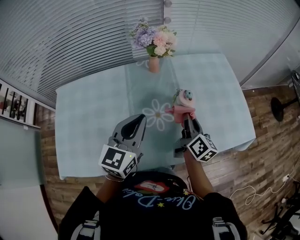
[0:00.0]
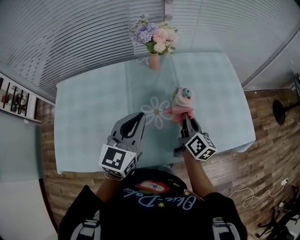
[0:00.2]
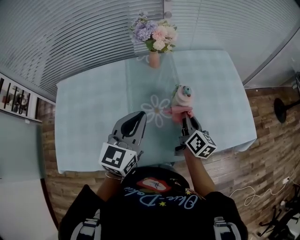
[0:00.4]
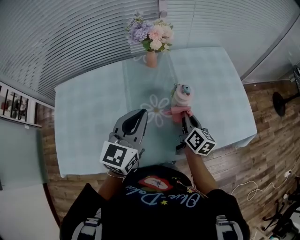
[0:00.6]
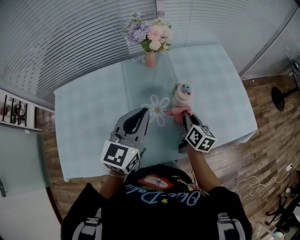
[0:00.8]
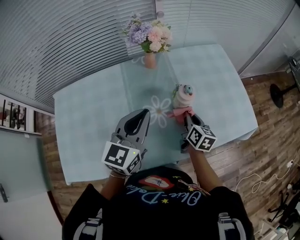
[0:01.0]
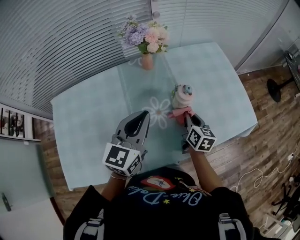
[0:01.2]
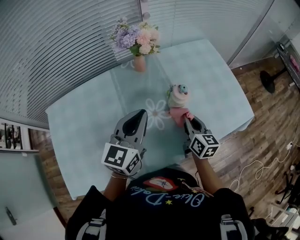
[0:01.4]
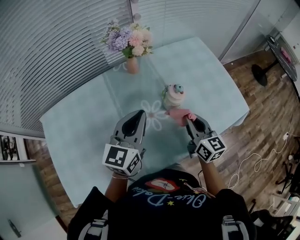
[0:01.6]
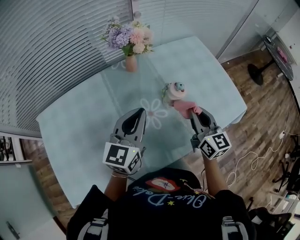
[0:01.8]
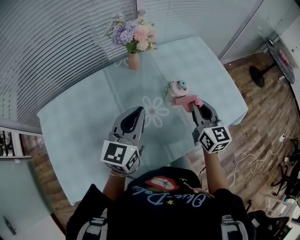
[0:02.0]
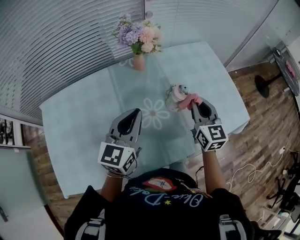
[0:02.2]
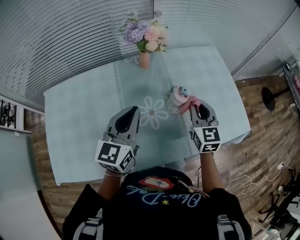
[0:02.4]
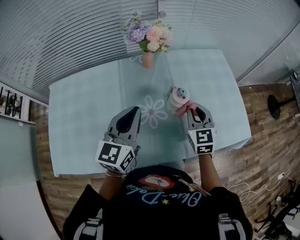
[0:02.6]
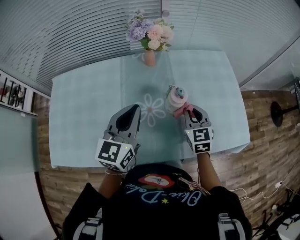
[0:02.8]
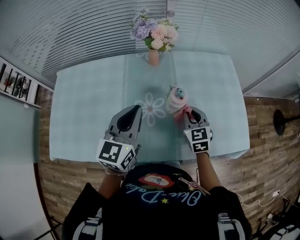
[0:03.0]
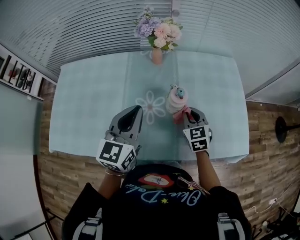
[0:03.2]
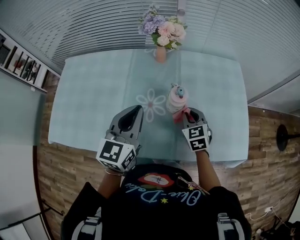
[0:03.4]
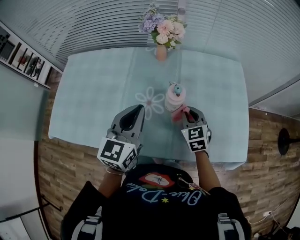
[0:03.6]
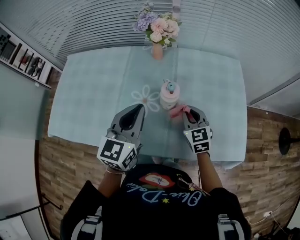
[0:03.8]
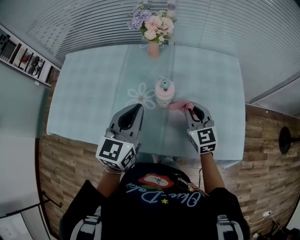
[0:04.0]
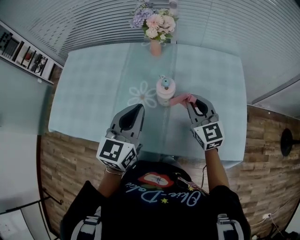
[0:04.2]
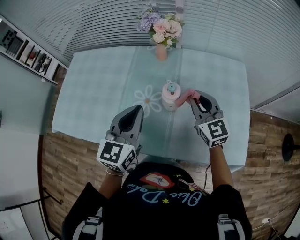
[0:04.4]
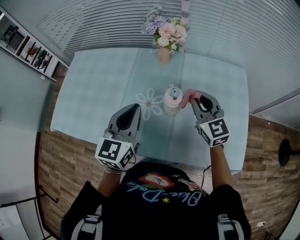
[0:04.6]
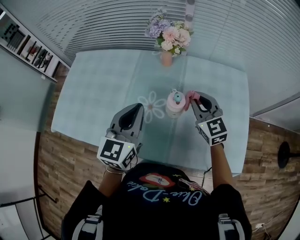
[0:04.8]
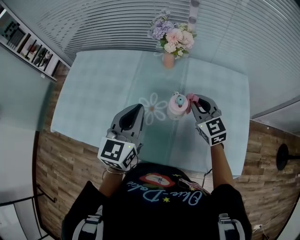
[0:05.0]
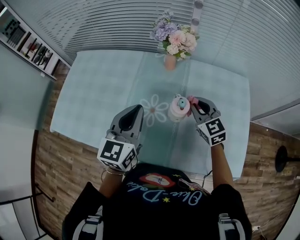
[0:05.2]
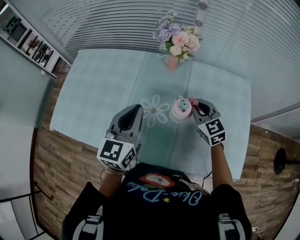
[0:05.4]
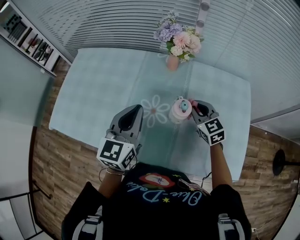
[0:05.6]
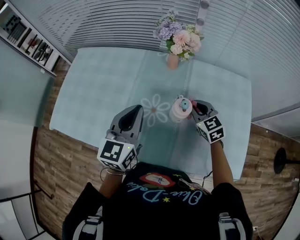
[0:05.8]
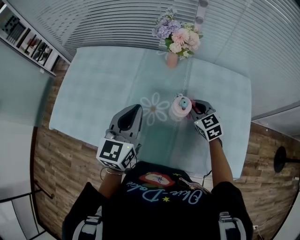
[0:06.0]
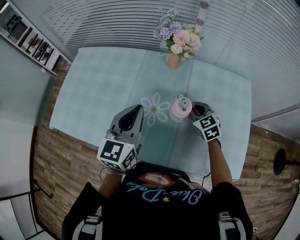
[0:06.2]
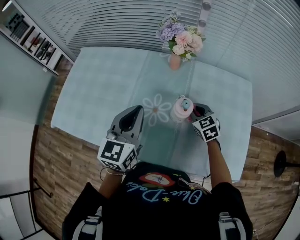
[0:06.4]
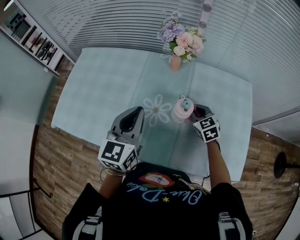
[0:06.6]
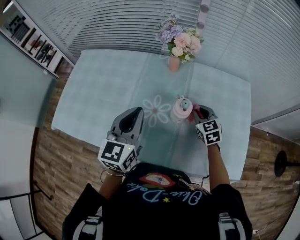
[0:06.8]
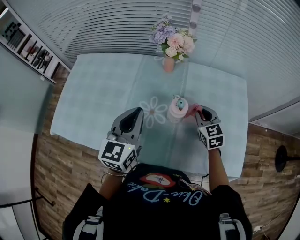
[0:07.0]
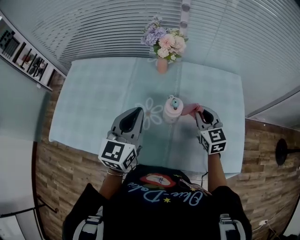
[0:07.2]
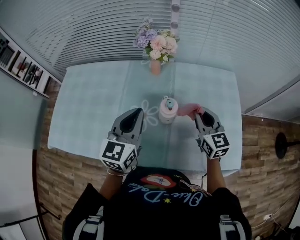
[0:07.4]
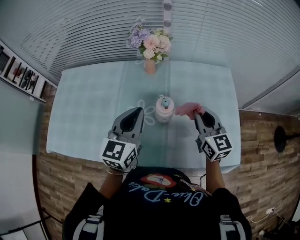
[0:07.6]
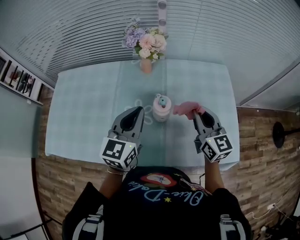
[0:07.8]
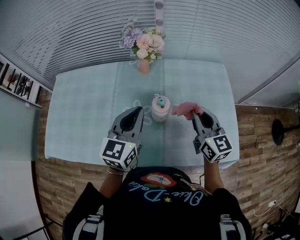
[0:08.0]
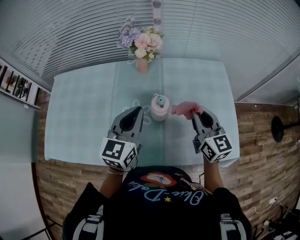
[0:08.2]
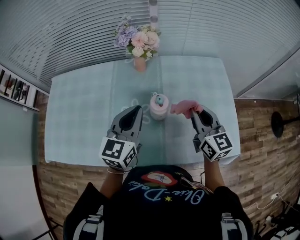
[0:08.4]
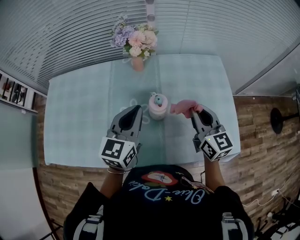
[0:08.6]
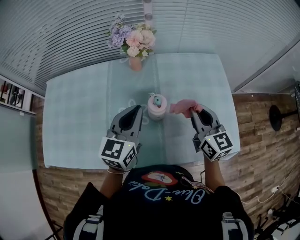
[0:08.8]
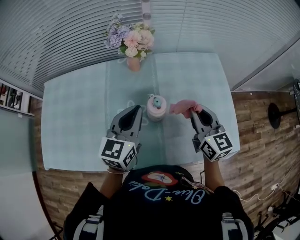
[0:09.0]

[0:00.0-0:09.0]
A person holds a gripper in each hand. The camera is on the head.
0:00.0 to 0:01.6: The right gripper swivels roughly 30 degrees.
0:01.6 to 0:03.0: The right gripper shifts some 10 cm forward and downward, and turns by approximately 40 degrees. The left gripper rotates about 20 degrees.
0:03.0 to 0:04.4: The left gripper heads to the right, covering about 5 cm; the right gripper moves upward, approximately 10 cm, and rotates some 30 degrees.
0:04.4 to 0:06.0: The left gripper is displaced forward by about 5 cm; the right gripper is displaced downward and forward by about 10 cm, and turns by approximately 30 degrees.
0:06.0 to 0:07.6: The right gripper goes some 15 cm upward, backward and to the right, and swivels some 40 degrees. Meanwhile the left gripper shifts about 5 cm to the right.
0:07.6 to 0:09.0: The grippers make only small movements.

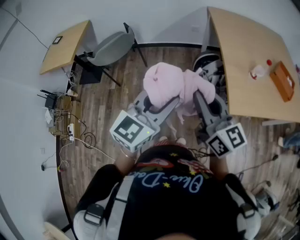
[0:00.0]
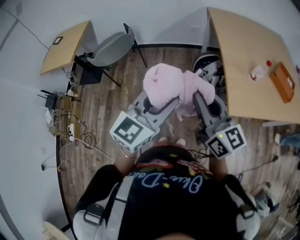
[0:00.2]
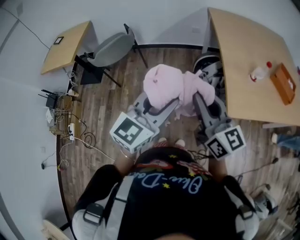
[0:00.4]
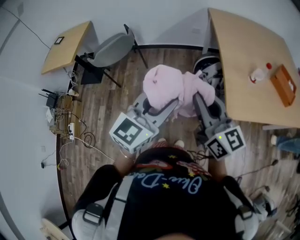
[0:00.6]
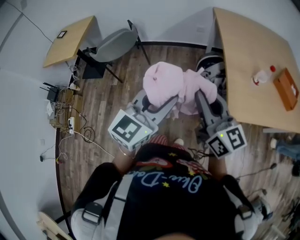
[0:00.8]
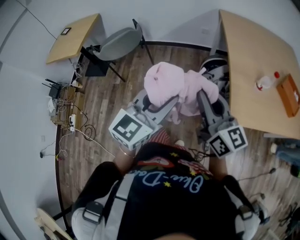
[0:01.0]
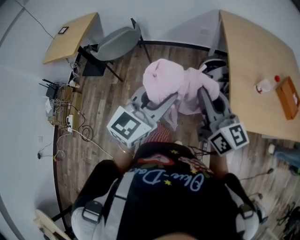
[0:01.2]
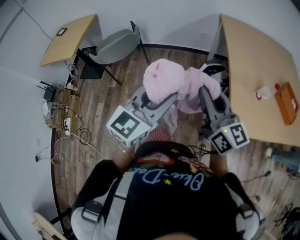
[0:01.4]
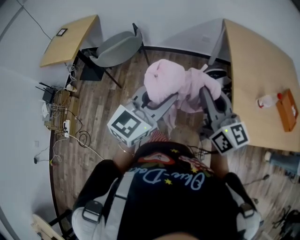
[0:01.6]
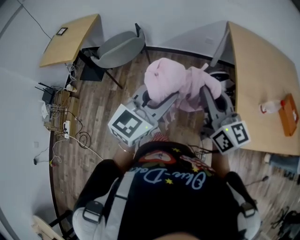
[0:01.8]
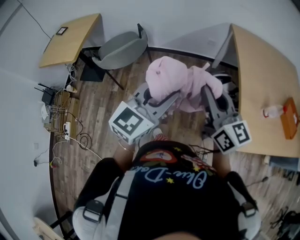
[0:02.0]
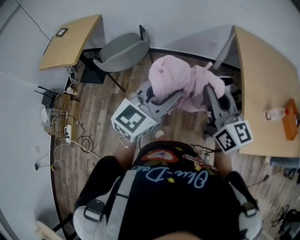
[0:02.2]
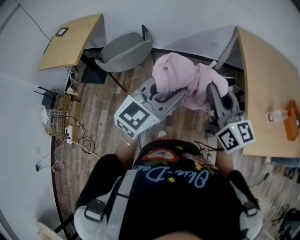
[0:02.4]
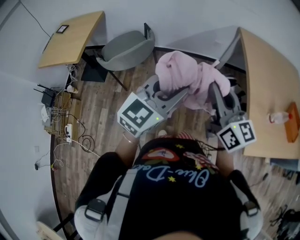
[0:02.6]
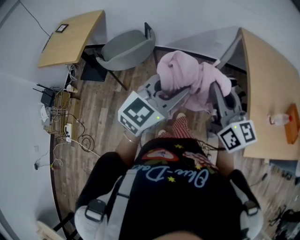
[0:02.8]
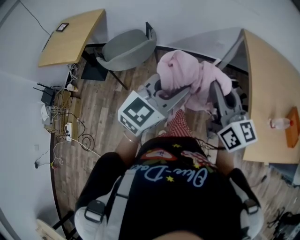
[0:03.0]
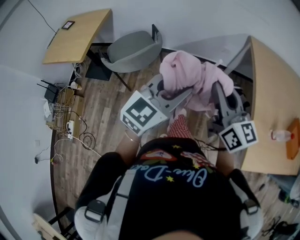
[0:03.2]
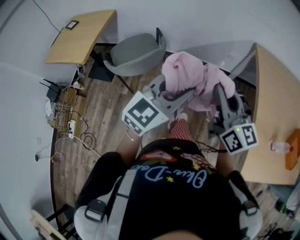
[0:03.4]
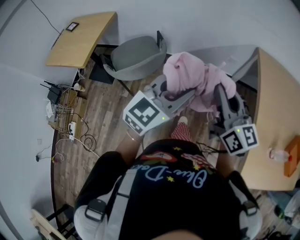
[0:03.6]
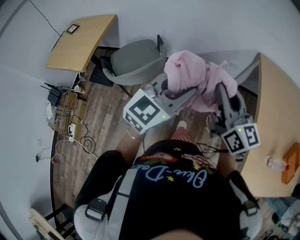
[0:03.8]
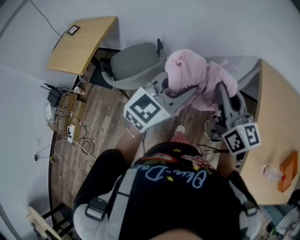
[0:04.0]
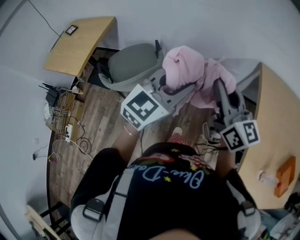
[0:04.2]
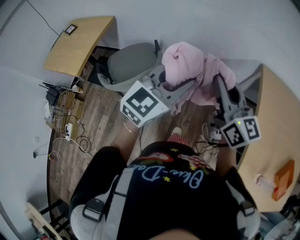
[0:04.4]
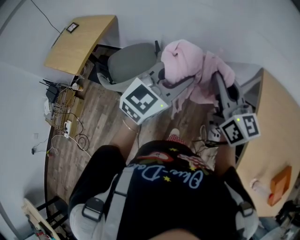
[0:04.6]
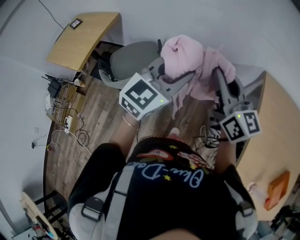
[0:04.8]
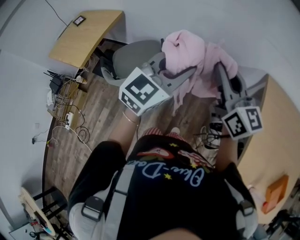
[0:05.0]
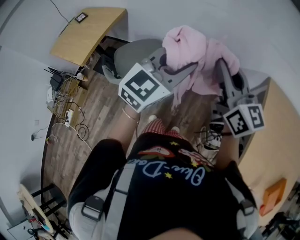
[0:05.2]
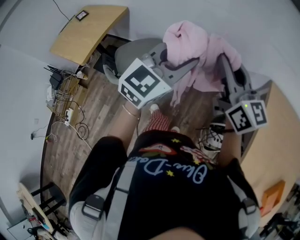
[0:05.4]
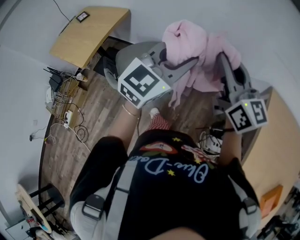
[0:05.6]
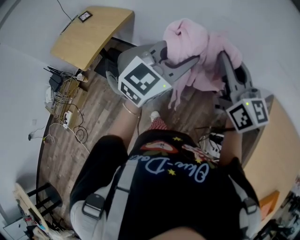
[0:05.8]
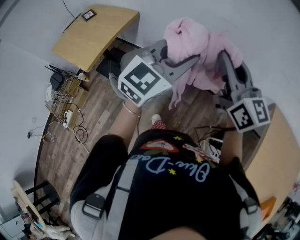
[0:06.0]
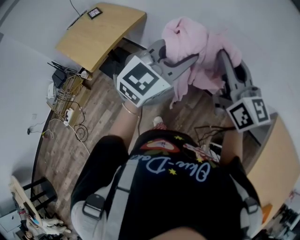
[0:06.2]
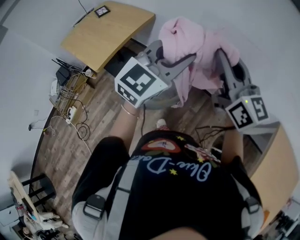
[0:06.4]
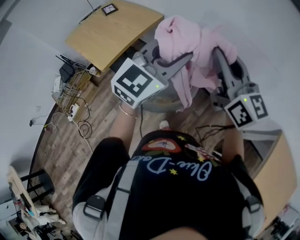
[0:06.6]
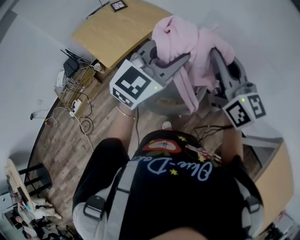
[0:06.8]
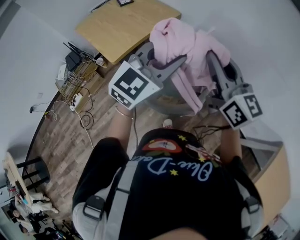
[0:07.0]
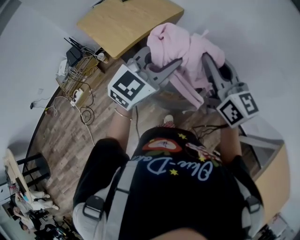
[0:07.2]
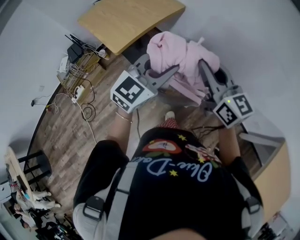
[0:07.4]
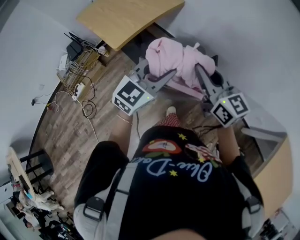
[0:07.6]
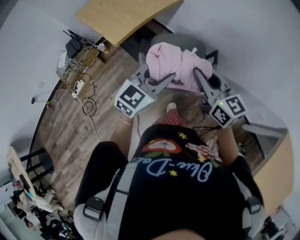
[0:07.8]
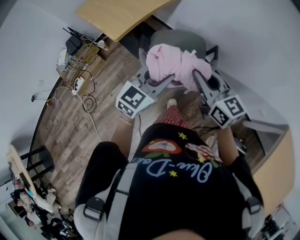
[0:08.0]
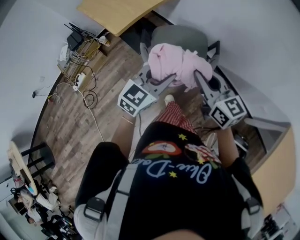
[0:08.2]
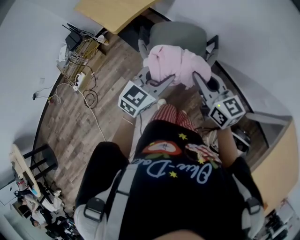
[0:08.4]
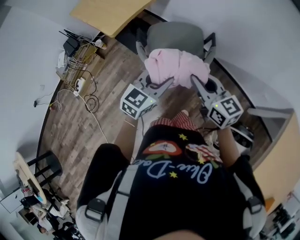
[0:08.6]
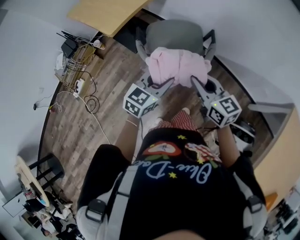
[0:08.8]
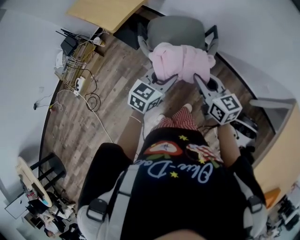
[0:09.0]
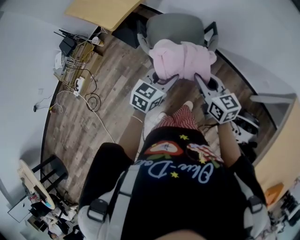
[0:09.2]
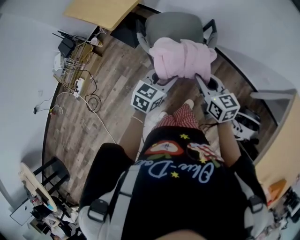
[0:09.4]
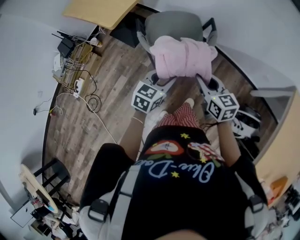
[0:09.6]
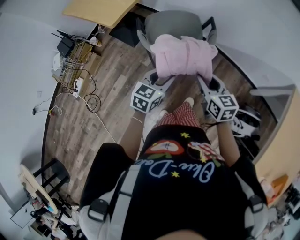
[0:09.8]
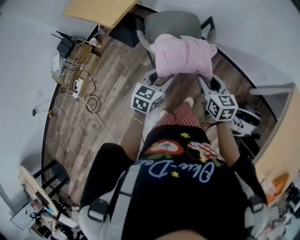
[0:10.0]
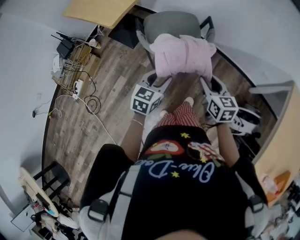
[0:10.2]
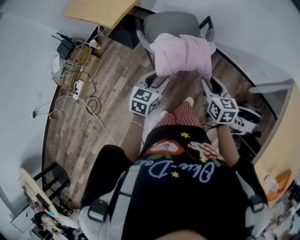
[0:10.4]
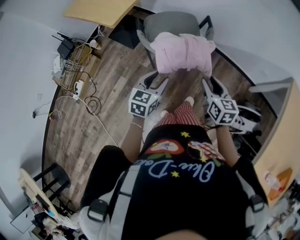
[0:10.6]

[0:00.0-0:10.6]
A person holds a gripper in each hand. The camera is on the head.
0:00.0 to 0:01.6: Both grippers move forward, roughly 10 cm.
0:01.6 to 0:03.0: The right gripper goes some 15 cm to the left and forward. The left gripper heads forward and to the left, covering about 15 cm.
0:03.0 to 0:04.6: Both grippers move forward, some 30 cm.
0:04.6 to 0:06.0: The two grippers go about 20 cm to the left and forward.
0:06.0 to 0:07.6: The two grippers go approximately 25 cm to the left and downward. The right gripper changes its angle by some 30 degrees. The left gripper rotates approximately 20 degrees.
0:07.6 to 0:09.0: The left gripper travels downward and backward by approximately 20 cm, and turns by roughly 20 degrees. Meanwhile the right gripper goes some 20 cm backward and downward.
0:09.0 to 0:10.6: The right gripper heads backward and downward, covering approximately 10 cm, swivels approximately 30 degrees, and opens, while the left gripper moves backward and to the left, roughly 10 cm.

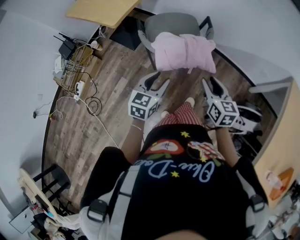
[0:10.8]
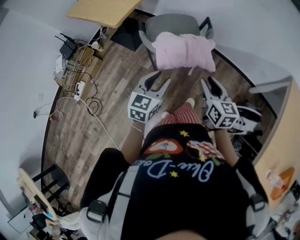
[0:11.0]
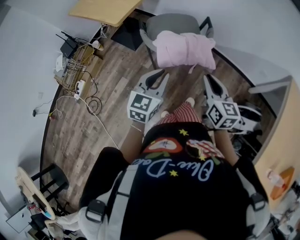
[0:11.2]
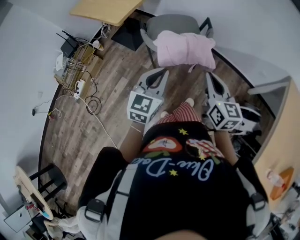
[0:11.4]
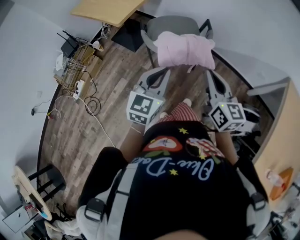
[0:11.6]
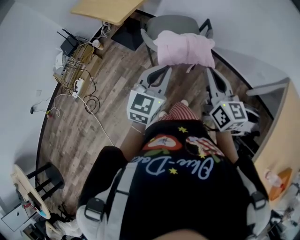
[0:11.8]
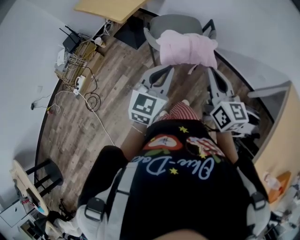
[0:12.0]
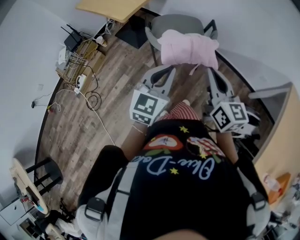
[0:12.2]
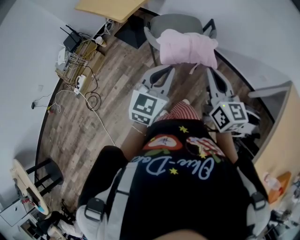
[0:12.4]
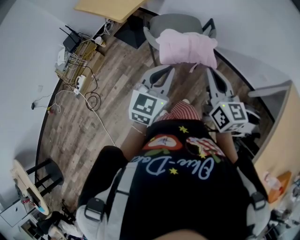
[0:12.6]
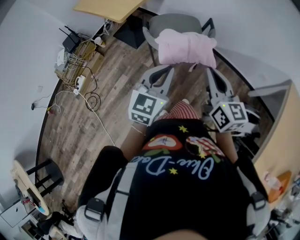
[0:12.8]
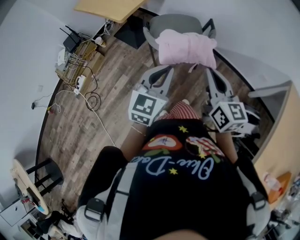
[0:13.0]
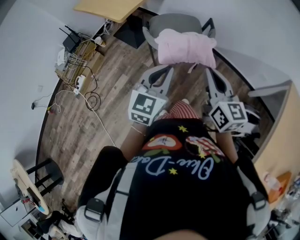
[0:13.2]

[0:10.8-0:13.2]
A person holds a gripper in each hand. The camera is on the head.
0:10.8 to 0:12.0: Both grippers move upward, about 15 cm. The left gripper closes. The right gripper closes its fingers.
0:12.0 to 0:13.2: Both grippers stay about where they are.

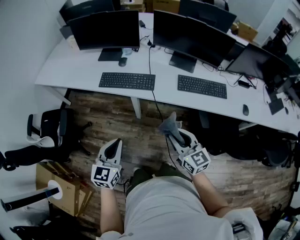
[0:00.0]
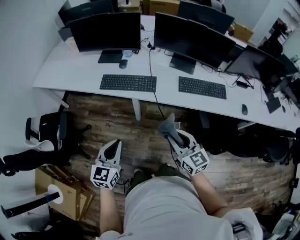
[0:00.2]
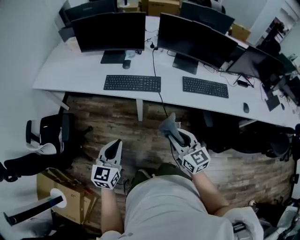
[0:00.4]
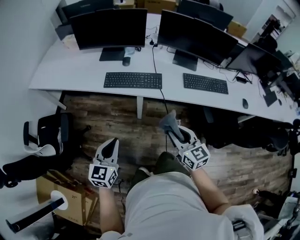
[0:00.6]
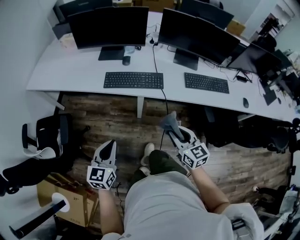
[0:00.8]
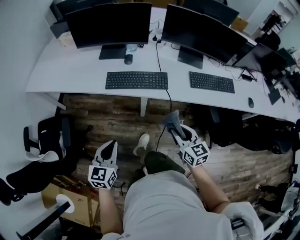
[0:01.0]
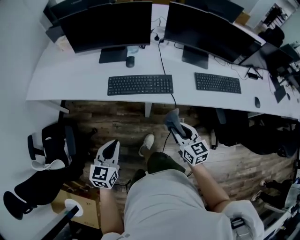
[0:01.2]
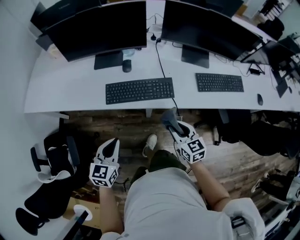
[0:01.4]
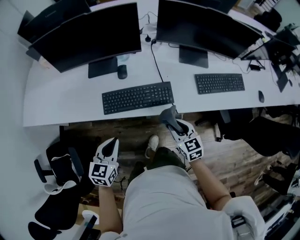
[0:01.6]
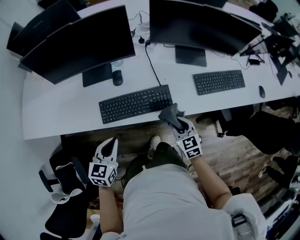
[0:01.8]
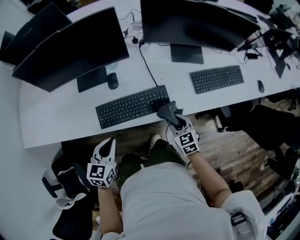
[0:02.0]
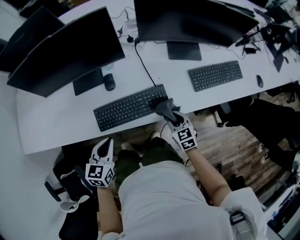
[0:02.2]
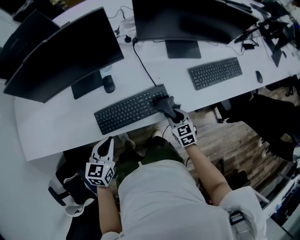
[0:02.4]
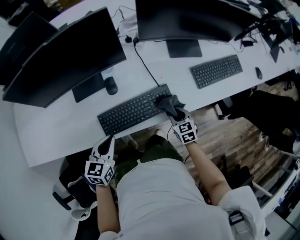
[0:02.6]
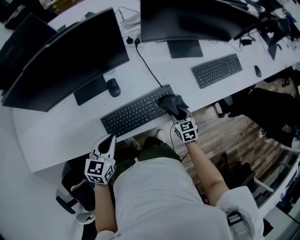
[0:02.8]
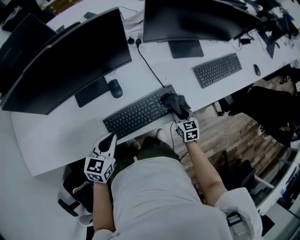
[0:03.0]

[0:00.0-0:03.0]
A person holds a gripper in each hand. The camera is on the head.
0:00.0 to 0:01.6: The left gripper moves forward and to the left, about 30 cm, and swivels approximately 20 degrees. Meanwhile the right gripper heads forward, to the left and downward, covering roughly 30 cm, and rotates some 20 degrees.
0:01.6 to 0:03.0: The left gripper changes place by some 20 cm, and changes its angle by about 20 degrees; the right gripper shifts roughly 10 cm downward, and changes its angle by some 30 degrees.
